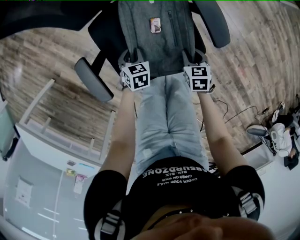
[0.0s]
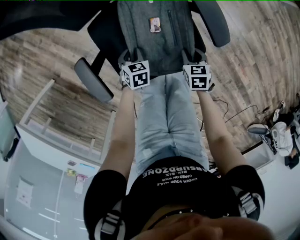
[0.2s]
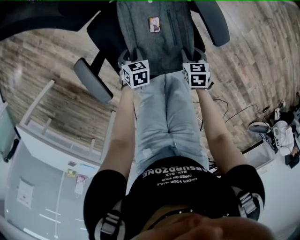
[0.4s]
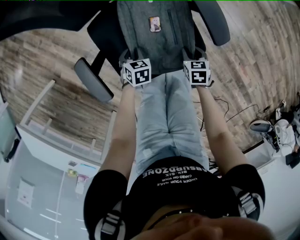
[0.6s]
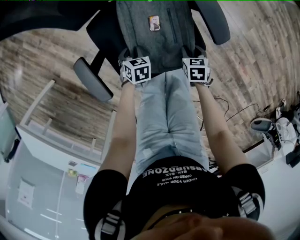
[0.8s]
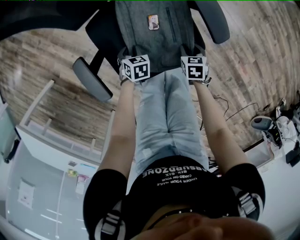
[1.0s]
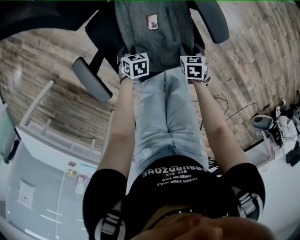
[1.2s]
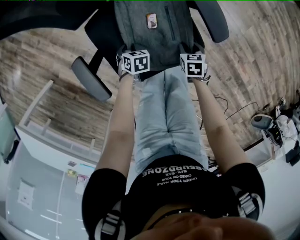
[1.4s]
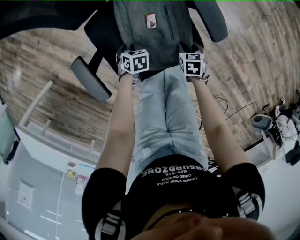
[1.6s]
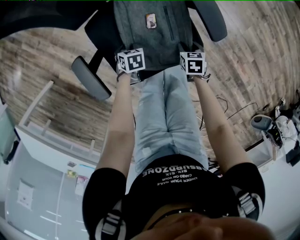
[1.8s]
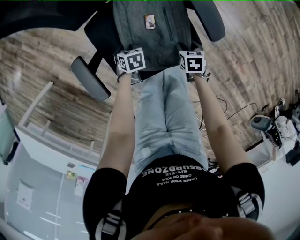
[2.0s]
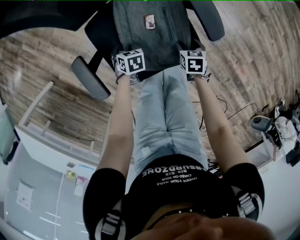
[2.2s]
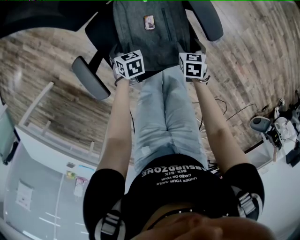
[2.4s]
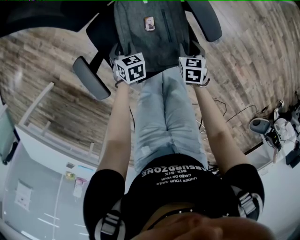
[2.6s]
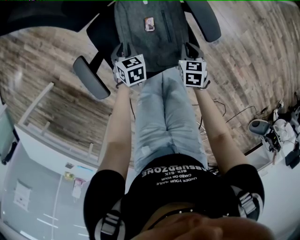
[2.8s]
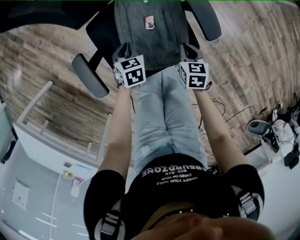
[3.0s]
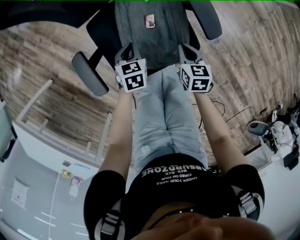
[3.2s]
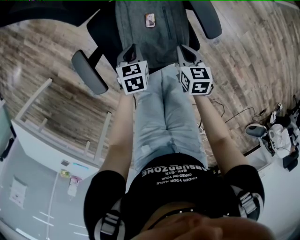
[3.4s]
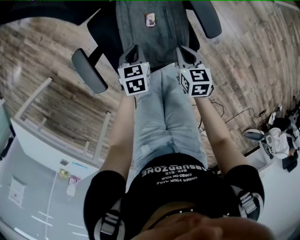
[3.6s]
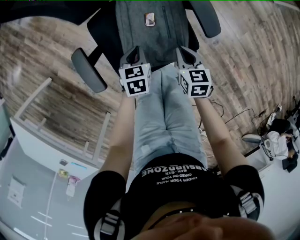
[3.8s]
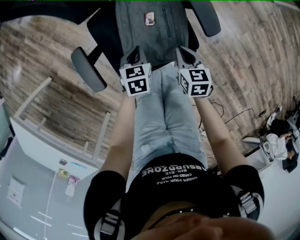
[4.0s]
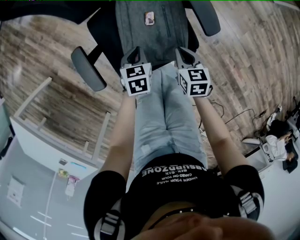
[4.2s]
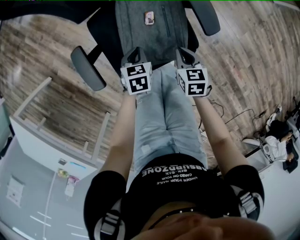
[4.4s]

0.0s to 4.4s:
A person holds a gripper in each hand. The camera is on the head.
0.0s to 1.4s: Both grippers travel together downward, about 5 cm.
1.4s to 3.0s: Both grippers move upward, about 10 cm. The right gripper closes up.
3.0s to 4.4s: The right gripper ends up some 5 cm from where it was. The left gripper goes approximately 5 cm backward.

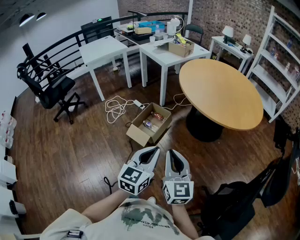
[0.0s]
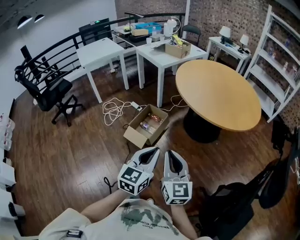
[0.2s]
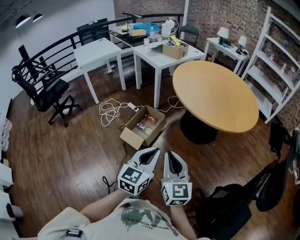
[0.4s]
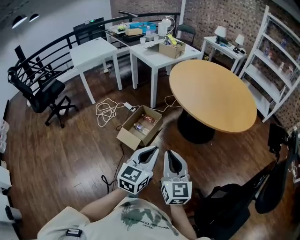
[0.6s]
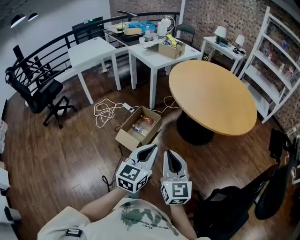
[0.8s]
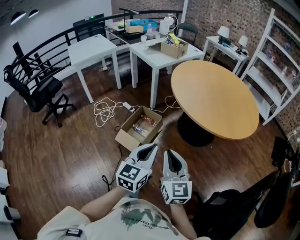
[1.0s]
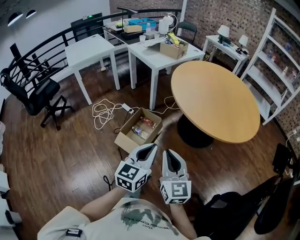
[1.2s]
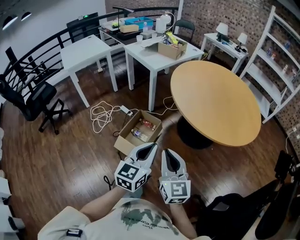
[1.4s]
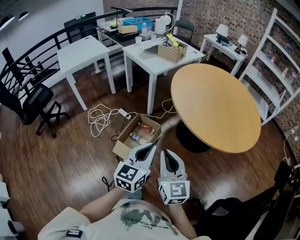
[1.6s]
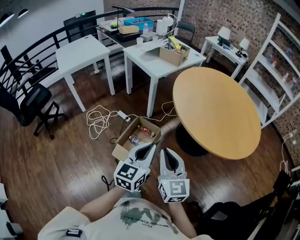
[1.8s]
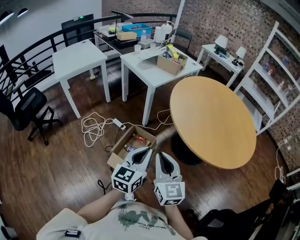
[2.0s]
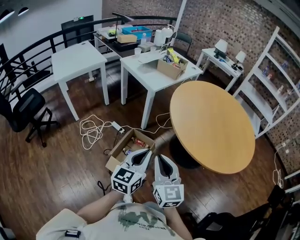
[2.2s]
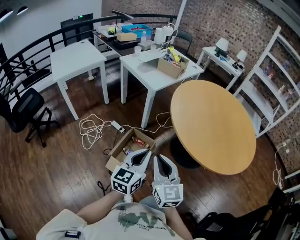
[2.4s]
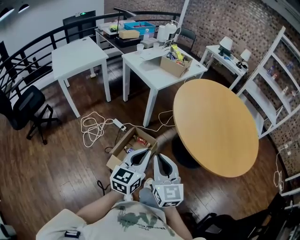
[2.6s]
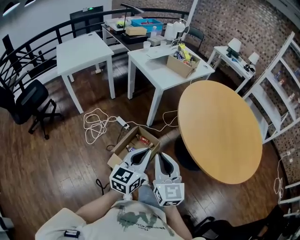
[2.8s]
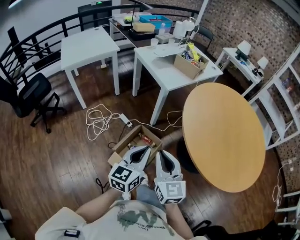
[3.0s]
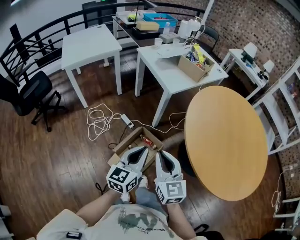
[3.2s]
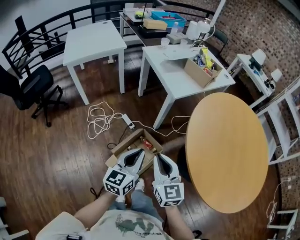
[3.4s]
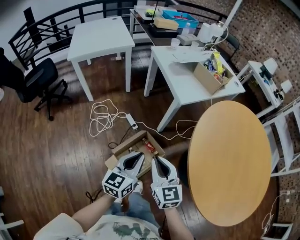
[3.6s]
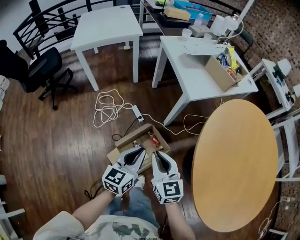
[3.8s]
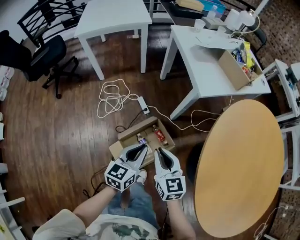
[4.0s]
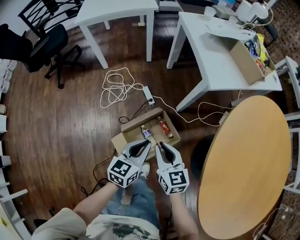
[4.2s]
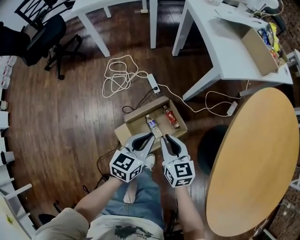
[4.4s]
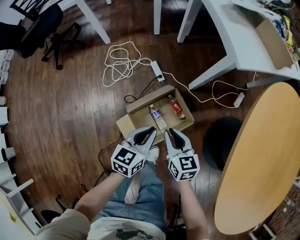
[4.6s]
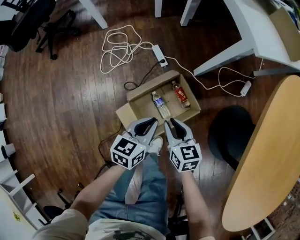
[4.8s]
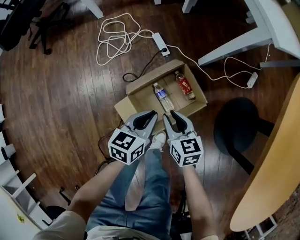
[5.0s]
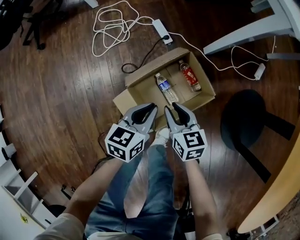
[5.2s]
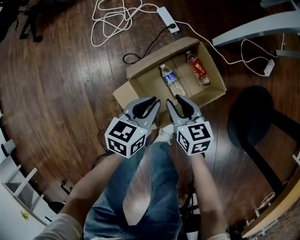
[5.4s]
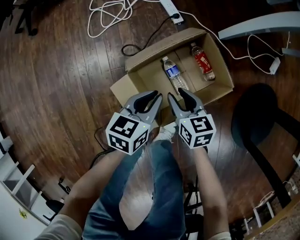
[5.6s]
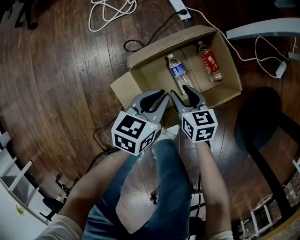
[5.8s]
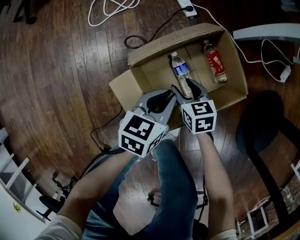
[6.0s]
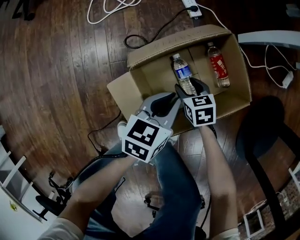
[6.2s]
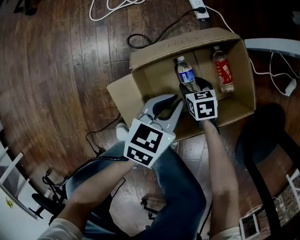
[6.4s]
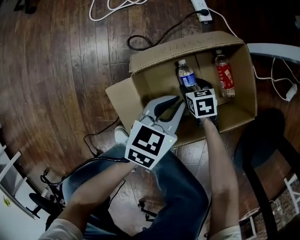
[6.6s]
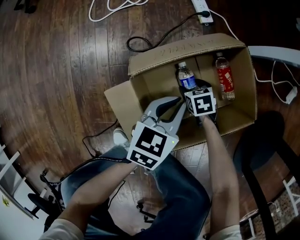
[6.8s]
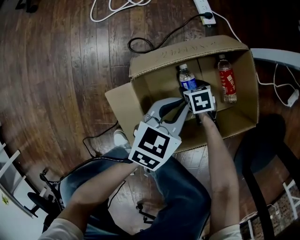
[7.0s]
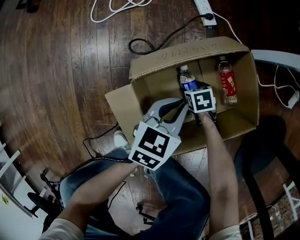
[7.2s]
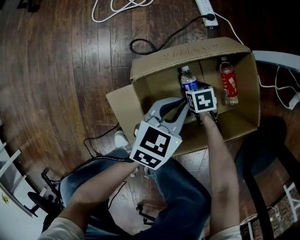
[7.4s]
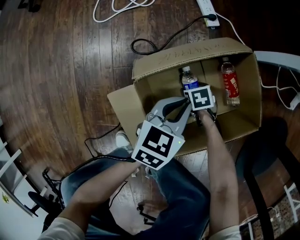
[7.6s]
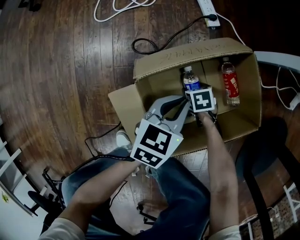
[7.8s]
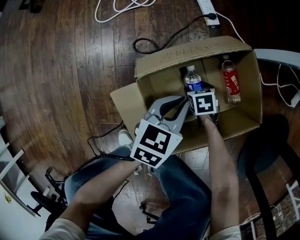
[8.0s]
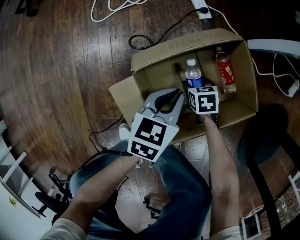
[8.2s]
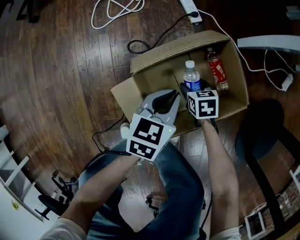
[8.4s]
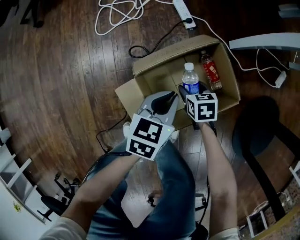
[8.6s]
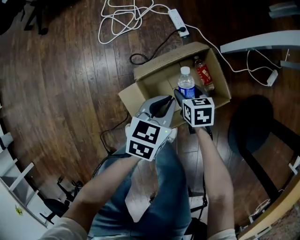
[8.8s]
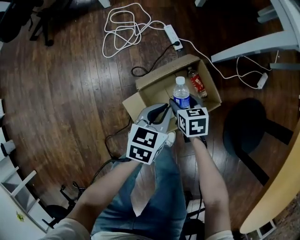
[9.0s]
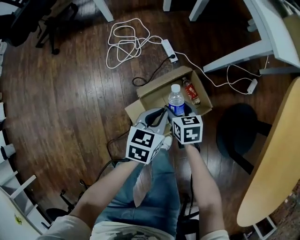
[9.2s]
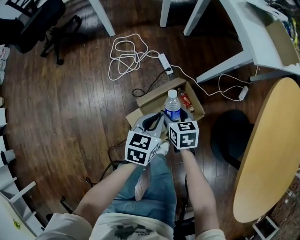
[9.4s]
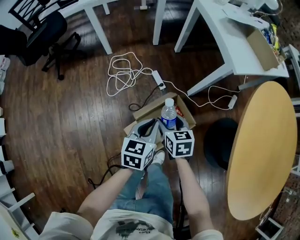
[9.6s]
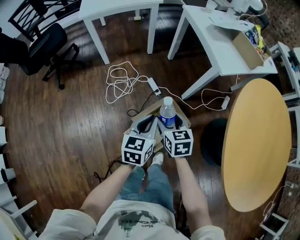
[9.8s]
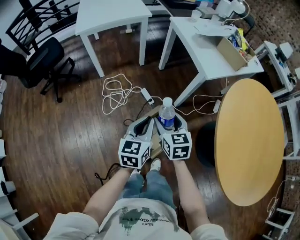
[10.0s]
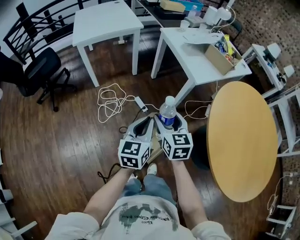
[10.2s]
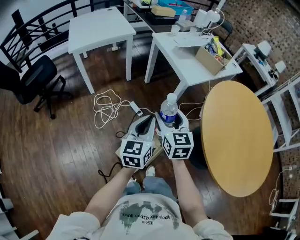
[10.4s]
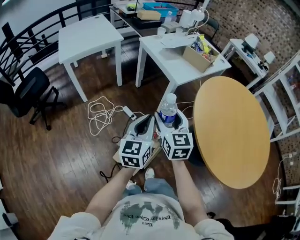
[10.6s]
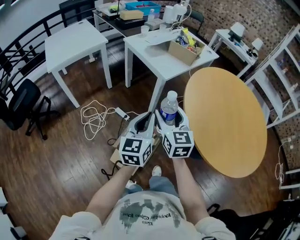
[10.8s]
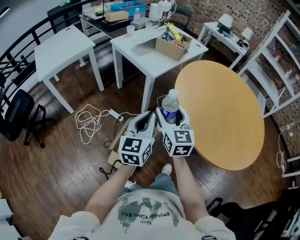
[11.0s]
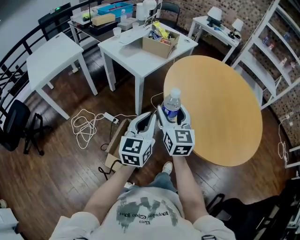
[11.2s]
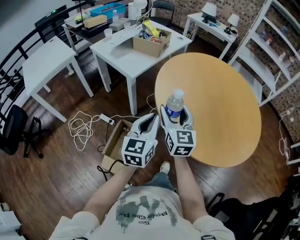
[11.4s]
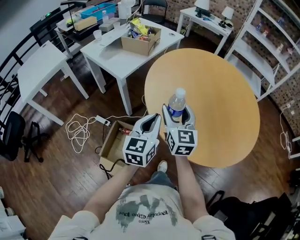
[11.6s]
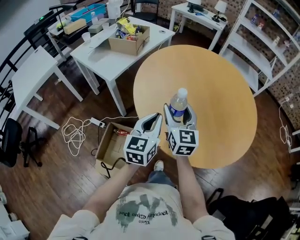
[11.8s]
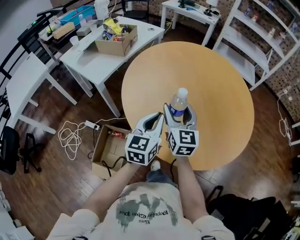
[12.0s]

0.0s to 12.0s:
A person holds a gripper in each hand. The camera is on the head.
0.0s to 1.6s: The two grippers go about 25 cm forward.
1.6s to 3.0s: The left gripper moves forward and to the left, roughly 20 cm. Meanwhile the right gripper heads forward, covering about 20 cm.
3.0s to 4.4s: Both grippers travel together downward and forward, about 35 cm. The right gripper changes its angle by about 40 degrees. The left gripper changes its angle by approximately 30 degrees.
4.4s to 6.0s: The two grippers go approximately 50 cm downward. The right gripper turns by approximately 30 degrees, and opens.
6.0s to 7.6s: The left gripper shifts about 5 cm downward. Meanwhile the right gripper travels downward by roughly 20 cm, and rotates roughly 30 degrees.
7.6s to 9.0s: The two grippers go some 30 cm upward. The right gripper turns by approximately 30 degrees.
9.0s to 10.4s: The grippers both shift upward by about 50 cm. The right gripper tilts its fingers approximately 40 degrees upward. Meanwhile the left gripper points its fingers some 30 degrees further upward.
10.4s to 12.0s: The two grippers travel together, some 50 cm. The right gripper turns by some 40 degrees. The left gripper changes its angle by roughly 40 degrees.

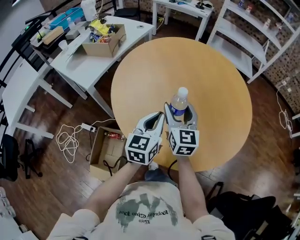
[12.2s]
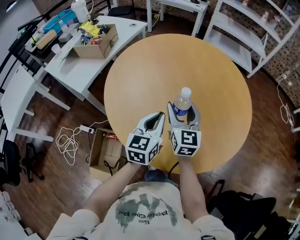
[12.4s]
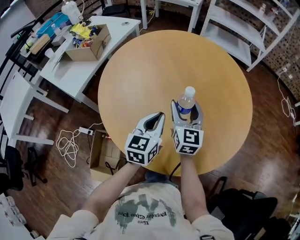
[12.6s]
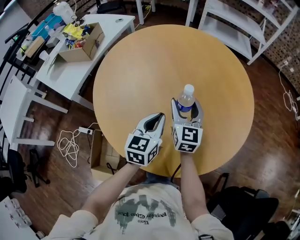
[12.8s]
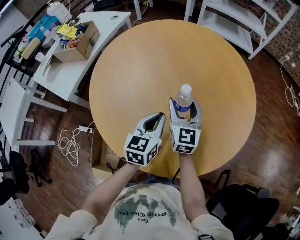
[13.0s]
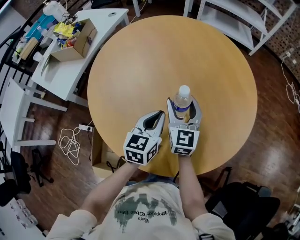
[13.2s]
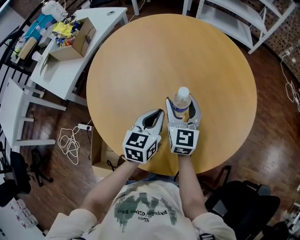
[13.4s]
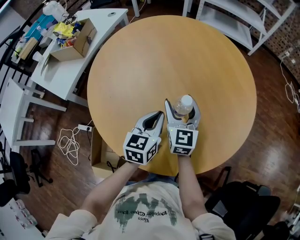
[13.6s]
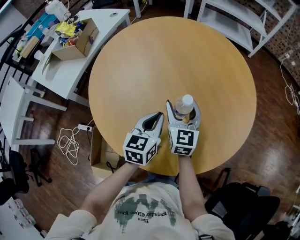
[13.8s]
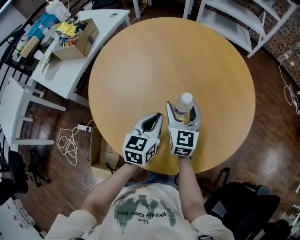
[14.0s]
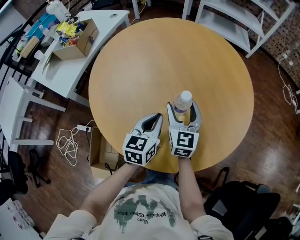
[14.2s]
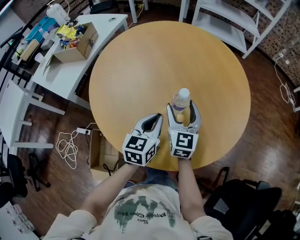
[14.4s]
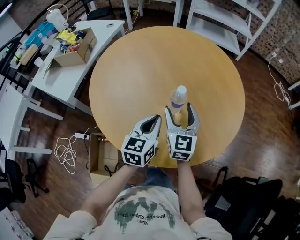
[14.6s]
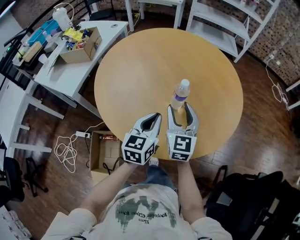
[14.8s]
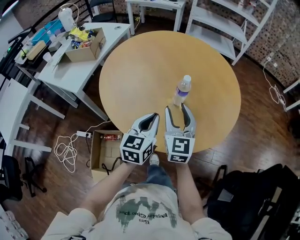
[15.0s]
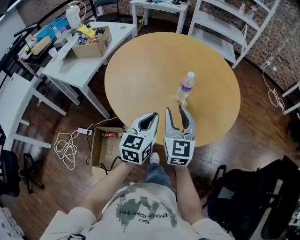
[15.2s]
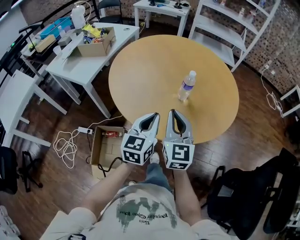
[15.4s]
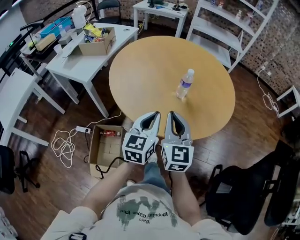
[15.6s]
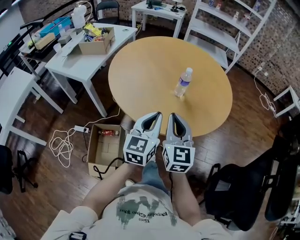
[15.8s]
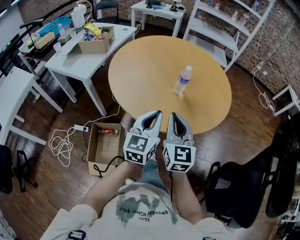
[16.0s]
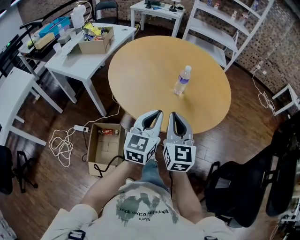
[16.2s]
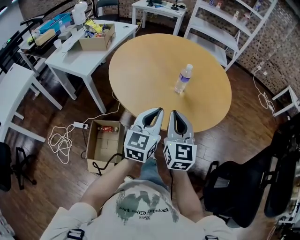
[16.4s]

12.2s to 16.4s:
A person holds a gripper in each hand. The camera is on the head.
12.2s to 13.6s: The right gripper goes roughly 15 cm to the right, forward and downward, while the left gripper moves downward, to the right and forward, some 15 cm.
13.6s to 15.0s: The grippers both shift backward and upward by roughly 20 cm. The right gripper closes up.
15.0s to 16.4s: The left gripper shifts roughly 15 cm backward and upward, while the right gripper heads backward, covering roughly 15 cm, and closes its fingers.

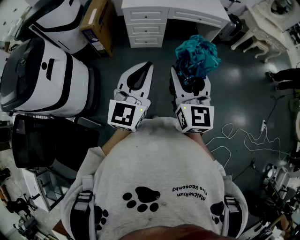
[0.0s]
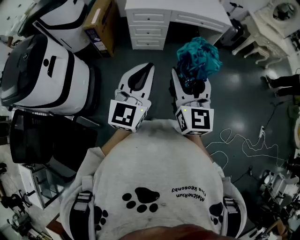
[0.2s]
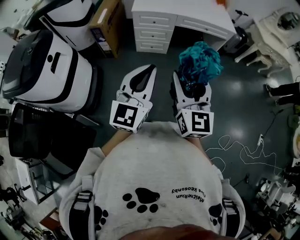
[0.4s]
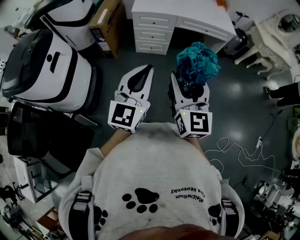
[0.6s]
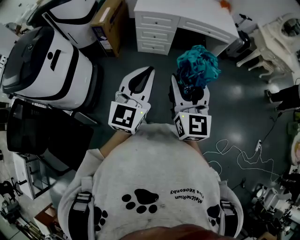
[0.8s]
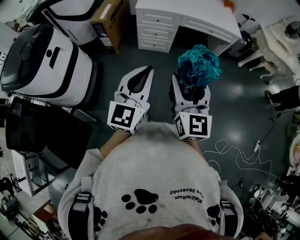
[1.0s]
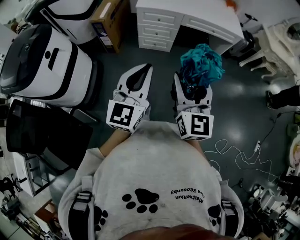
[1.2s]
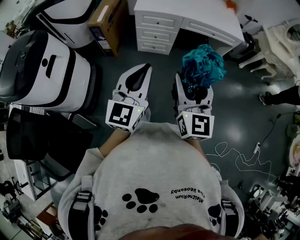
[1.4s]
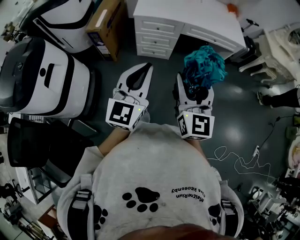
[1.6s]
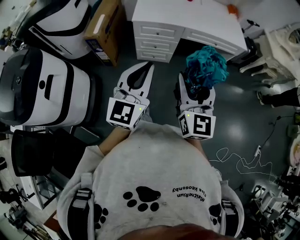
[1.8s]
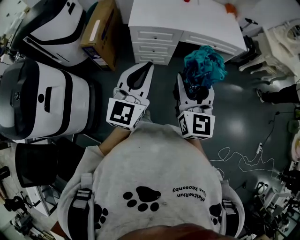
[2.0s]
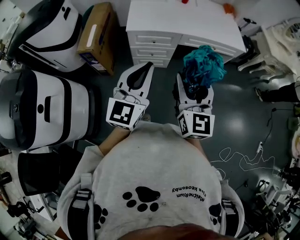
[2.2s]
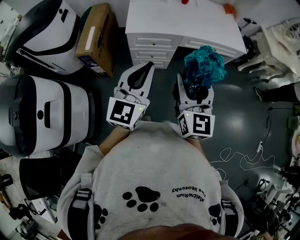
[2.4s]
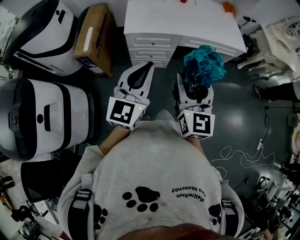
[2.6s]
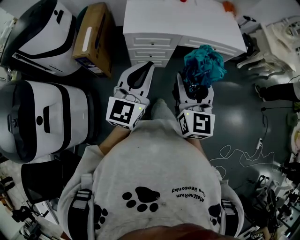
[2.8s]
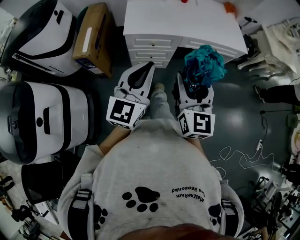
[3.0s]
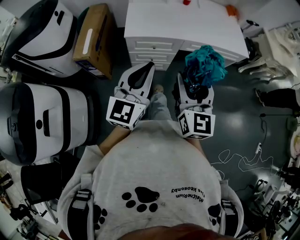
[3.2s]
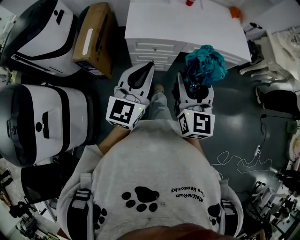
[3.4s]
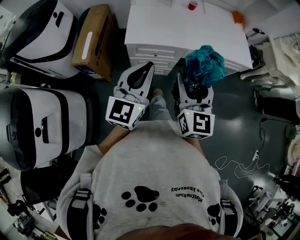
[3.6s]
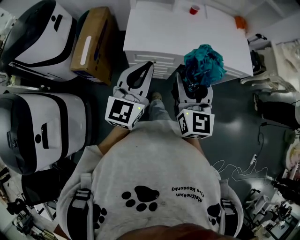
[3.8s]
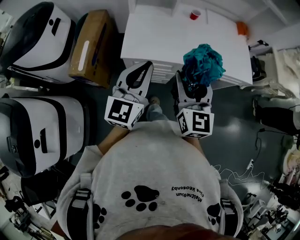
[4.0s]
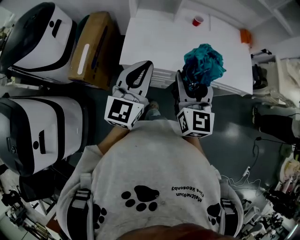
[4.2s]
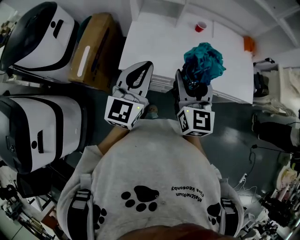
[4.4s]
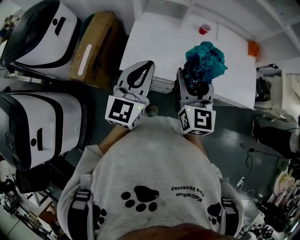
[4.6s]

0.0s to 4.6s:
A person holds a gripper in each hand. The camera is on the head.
0.0s to 1.6s: Both grippers travel together forward, some 20 cm.
1.6s to 3.0s: The two grippers go approximately 25 cm forward.
3.0s to 4.6s: Both grippers move forward, approximately 35 cm.
